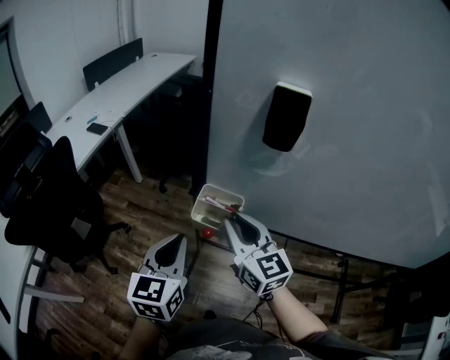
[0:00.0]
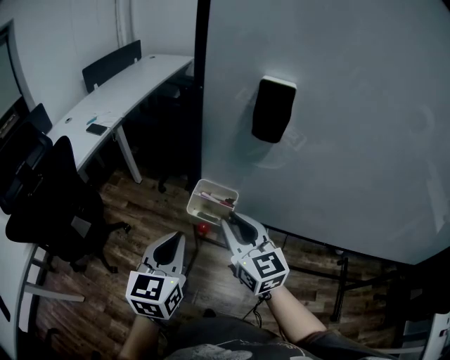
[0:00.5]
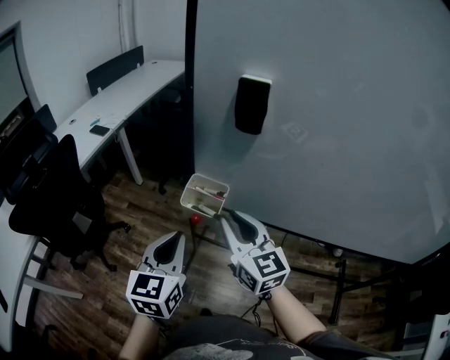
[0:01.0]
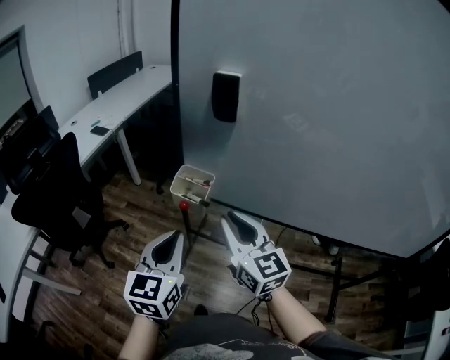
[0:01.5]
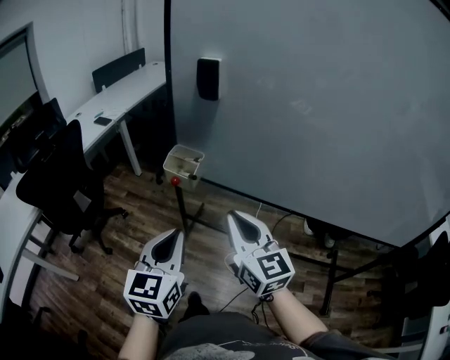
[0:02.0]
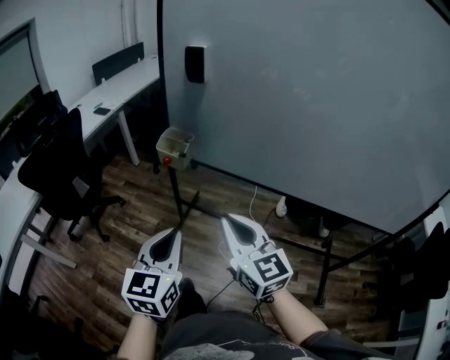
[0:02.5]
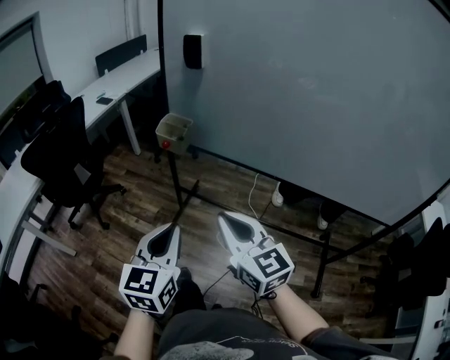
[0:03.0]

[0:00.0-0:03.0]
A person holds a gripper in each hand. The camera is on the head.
0:00.0 to 0:01.5: The grippers both shift backward and to the right by about 15 cm.
0:01.5 to 0:03.0: The grippers both shift backward by approximately 25 cm.

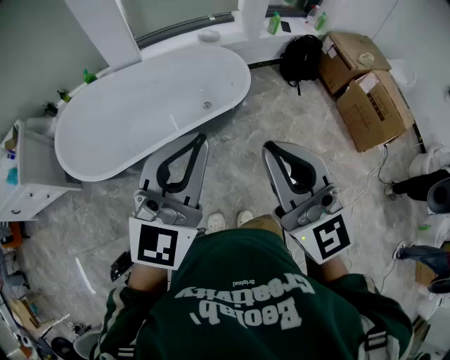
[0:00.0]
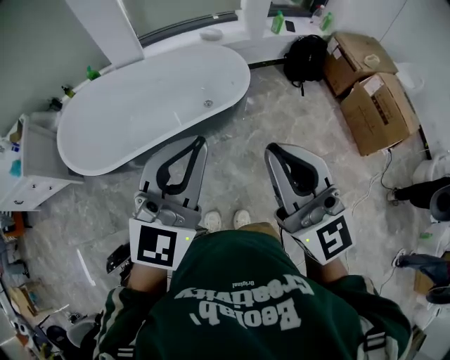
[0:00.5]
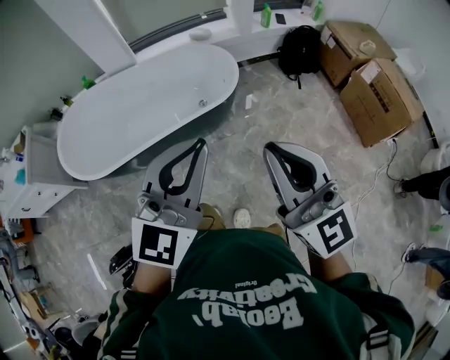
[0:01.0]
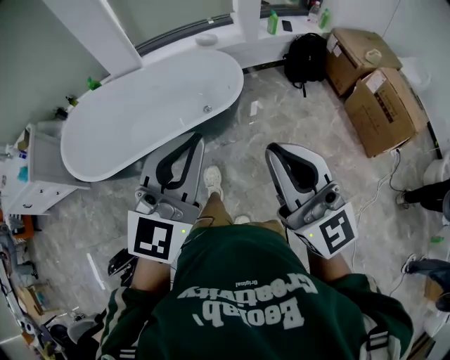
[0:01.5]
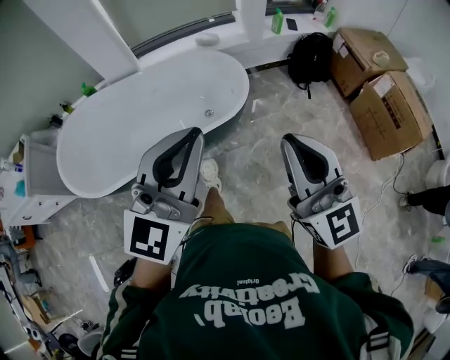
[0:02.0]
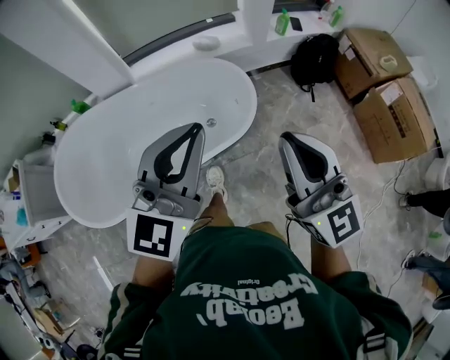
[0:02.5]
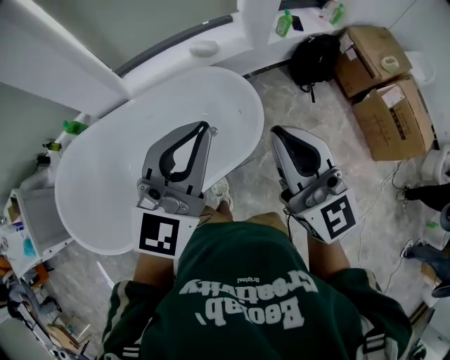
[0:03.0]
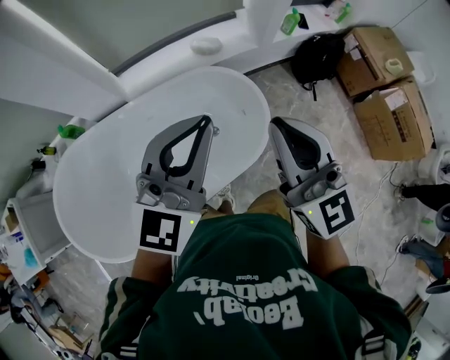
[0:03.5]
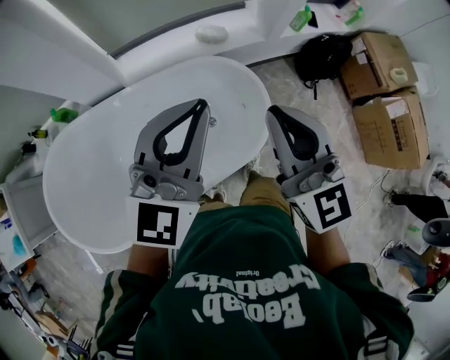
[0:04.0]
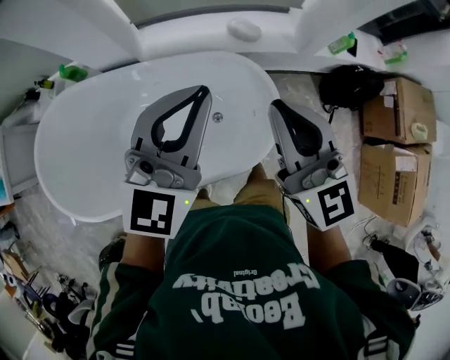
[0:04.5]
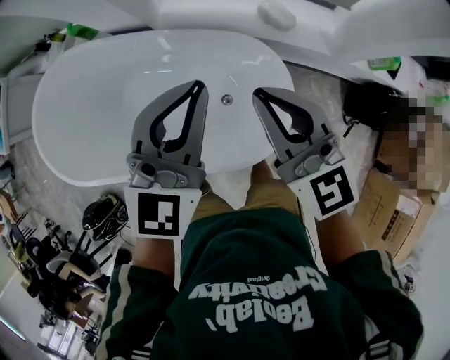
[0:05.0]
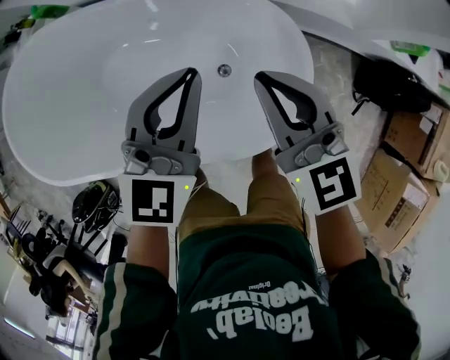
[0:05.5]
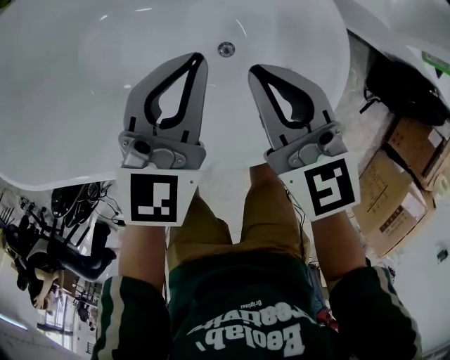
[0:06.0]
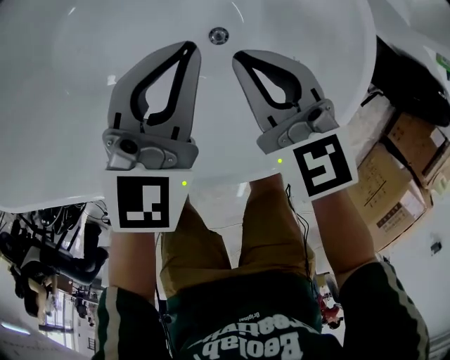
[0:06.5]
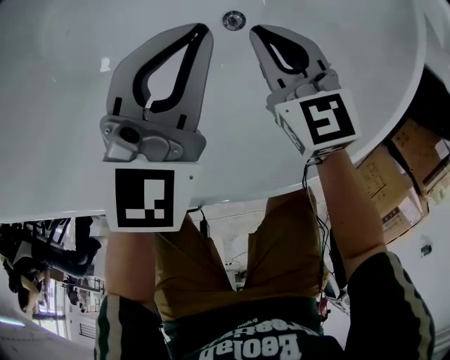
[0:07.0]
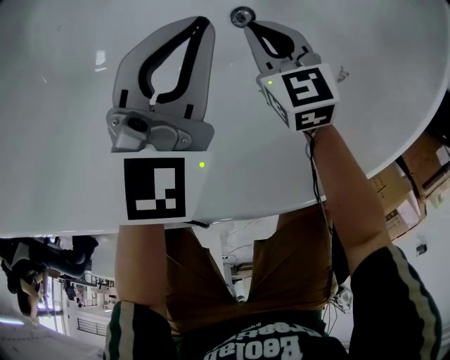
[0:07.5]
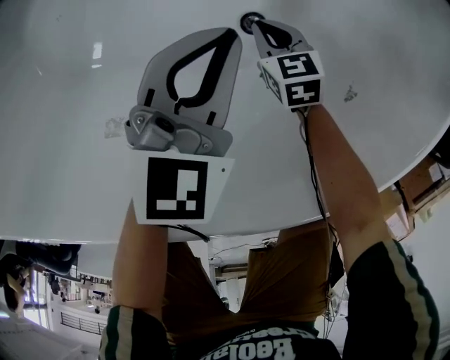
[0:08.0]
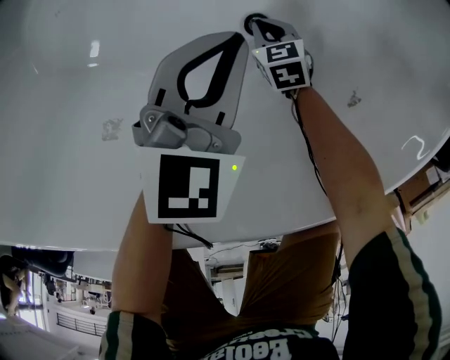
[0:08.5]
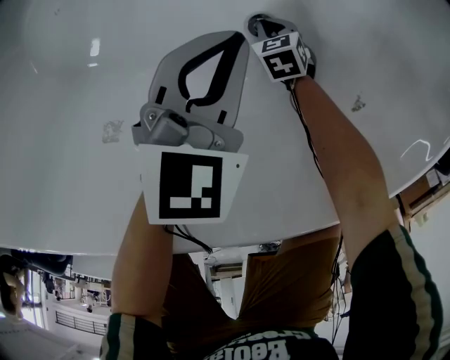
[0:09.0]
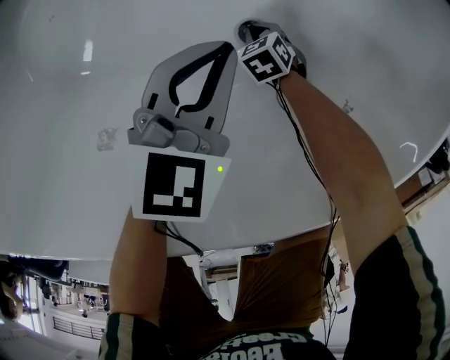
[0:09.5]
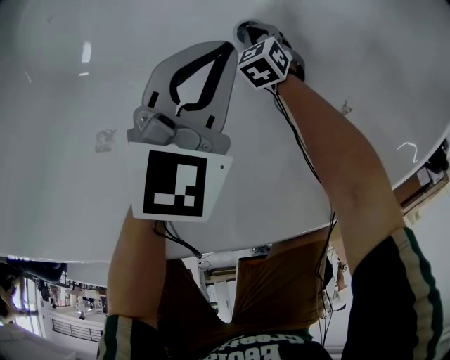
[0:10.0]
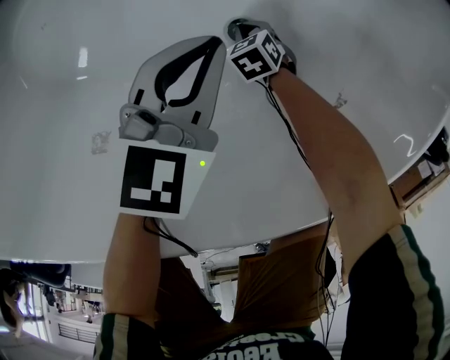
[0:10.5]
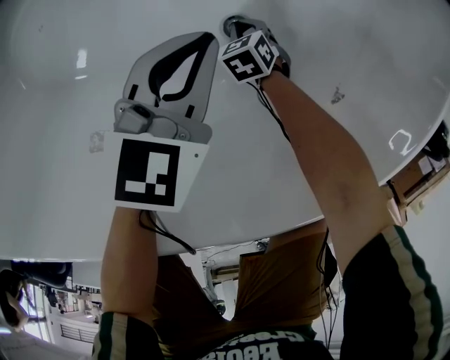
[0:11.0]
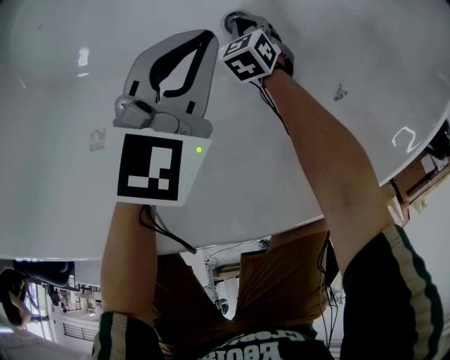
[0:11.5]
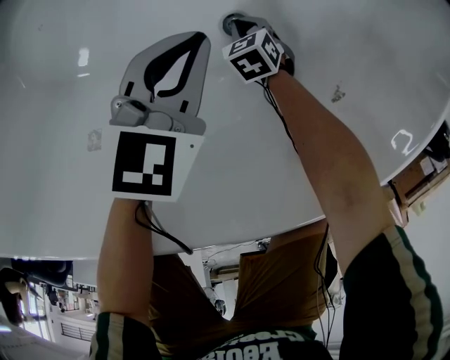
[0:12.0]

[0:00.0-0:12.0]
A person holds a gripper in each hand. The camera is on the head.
0:00.0 to 0:02.0: The left gripper travels forward and to the right by roughly 15 cm. The right gripper heads to the right, forward and downward, covering roughly 20 cm.
0:02.0 to 0:04.0: The two grippers travel together, forward and to the left, roughly 40 cm.
0:04.0 to 0:06.0: Both grippers move downward, some 40 cm. The left gripper changes its angle by some 50 degrees. Meanwhile the right gripper changes its angle by some 40 degrees.
0:06.0 to 0:08.0: The left gripper shifts roughly 25 cm downward. Meanwhile the right gripper moves downward, about 50 cm, and tilts its fingers roughly 30 degrees downward.
0:08.0 to 0:10.0: The right gripper is displaced downward by roughly 10 cm, and changes its angle by approximately 30 degrees.
0:10.0 to 0:12.0: There are only small adjustments of the grippers.

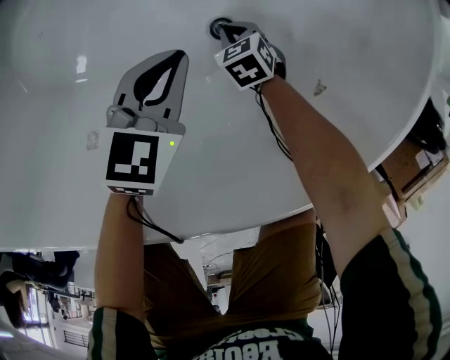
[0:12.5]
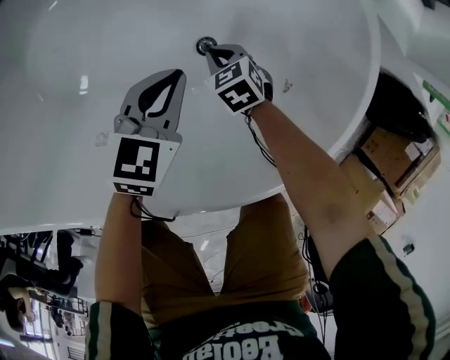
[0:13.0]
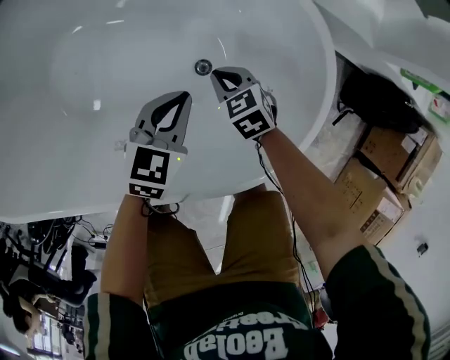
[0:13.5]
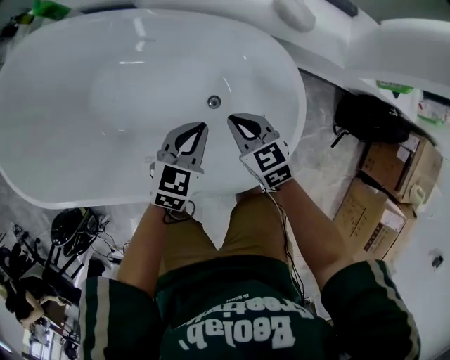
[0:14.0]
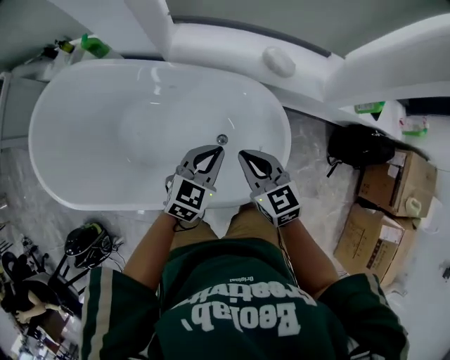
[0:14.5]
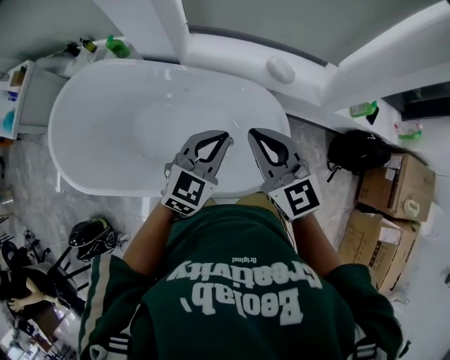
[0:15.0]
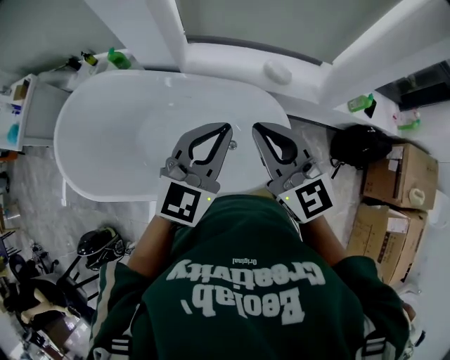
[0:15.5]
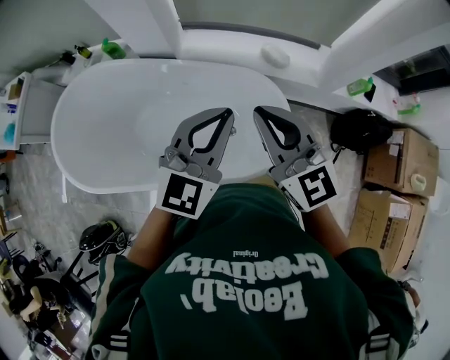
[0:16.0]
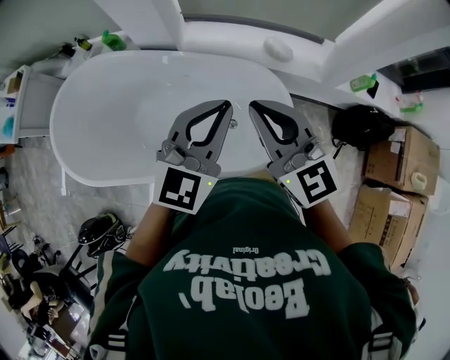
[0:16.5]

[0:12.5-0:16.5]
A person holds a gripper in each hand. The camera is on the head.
0:12.5 to 0:14.5: Both grippers travel together upward, roughly 50 cm. The right gripper tips its fingers upward by some 40 degrees, while the left gripper changes its angle by roughly 30 degrees.
0:14.5 to 0:16.5: The two grippers go some 25 cm upward. The right gripper rotates some 30 degrees. Meanwhile the left gripper swivels approximately 30 degrees.

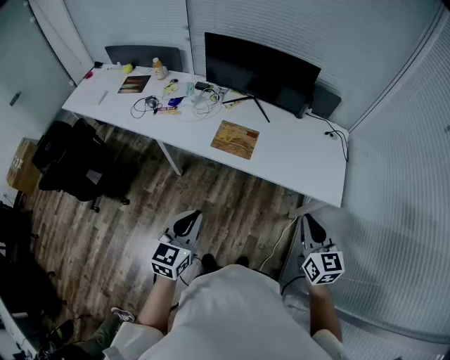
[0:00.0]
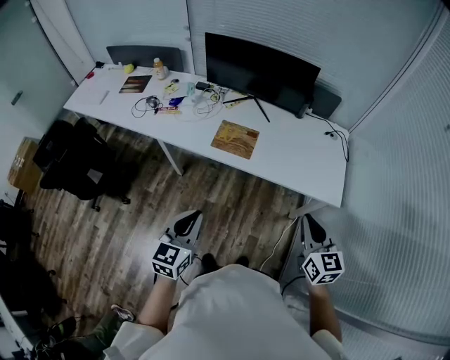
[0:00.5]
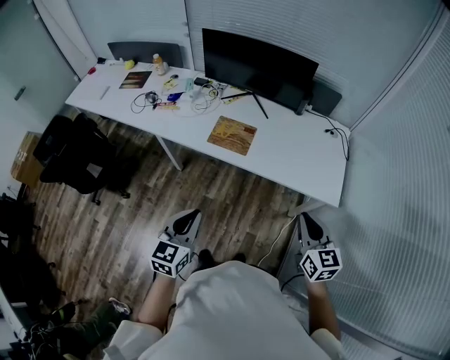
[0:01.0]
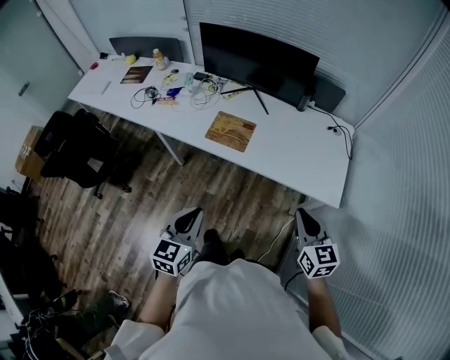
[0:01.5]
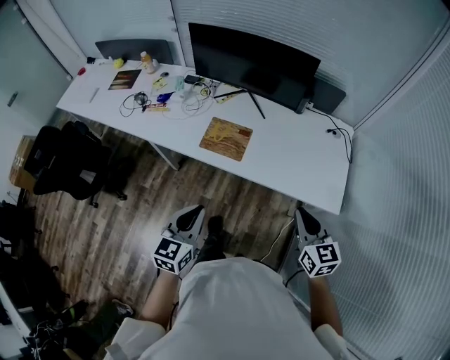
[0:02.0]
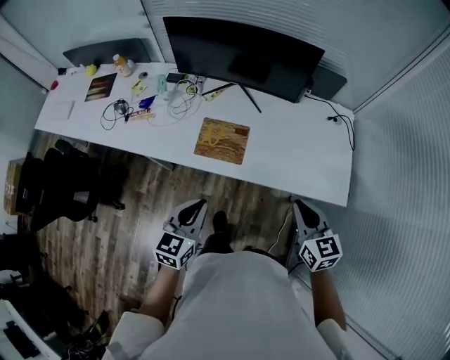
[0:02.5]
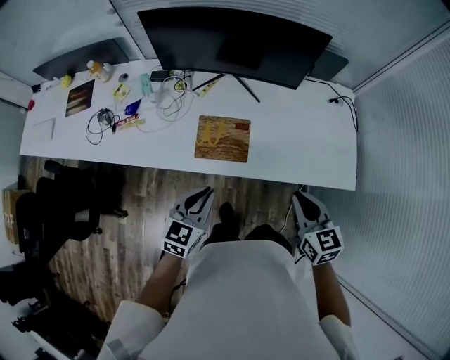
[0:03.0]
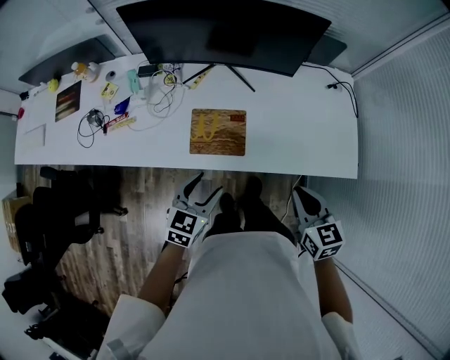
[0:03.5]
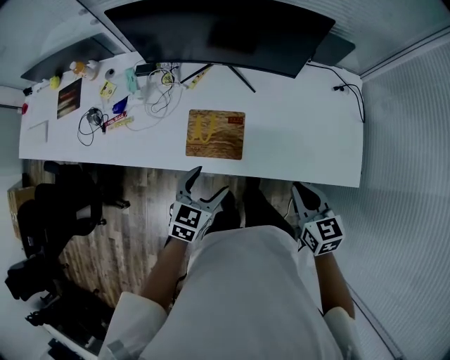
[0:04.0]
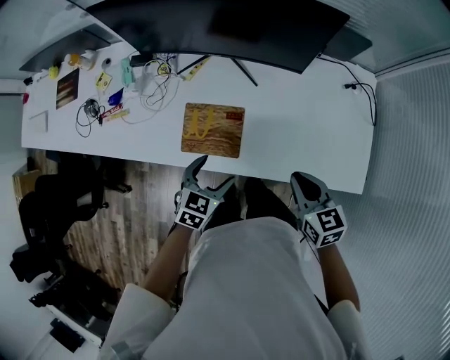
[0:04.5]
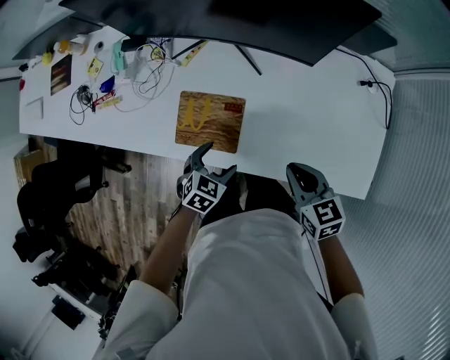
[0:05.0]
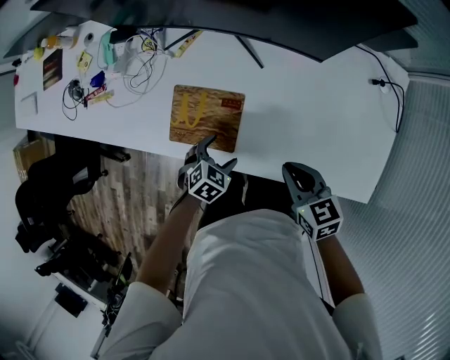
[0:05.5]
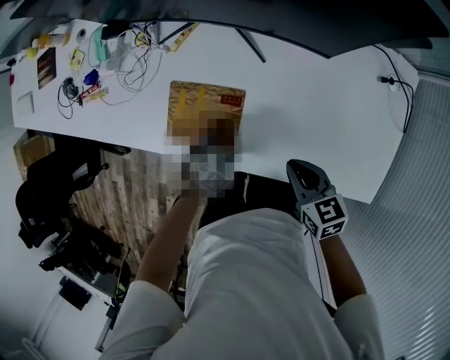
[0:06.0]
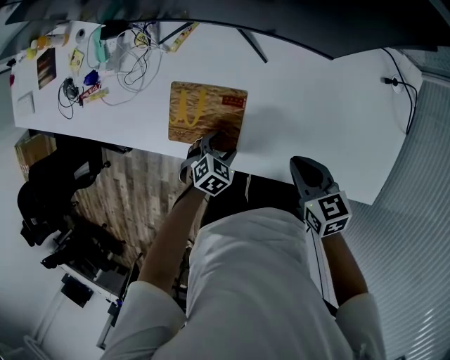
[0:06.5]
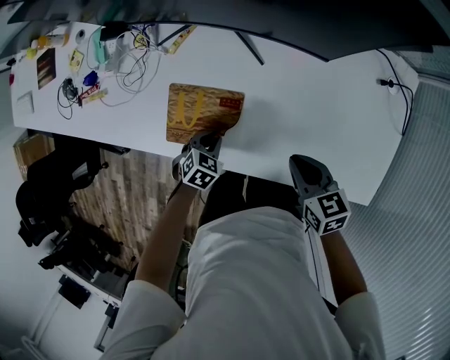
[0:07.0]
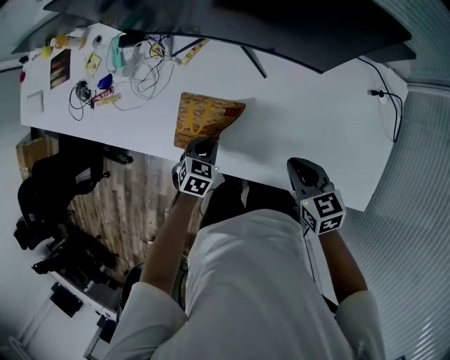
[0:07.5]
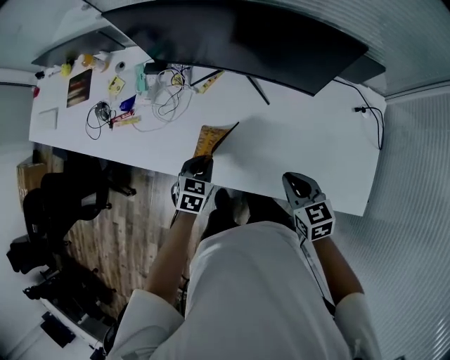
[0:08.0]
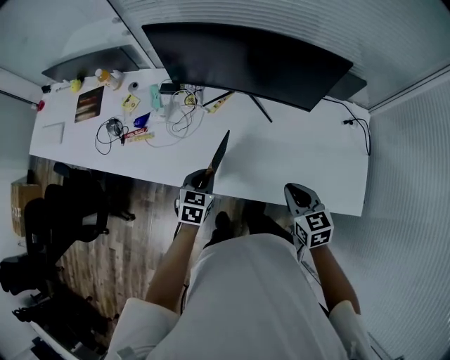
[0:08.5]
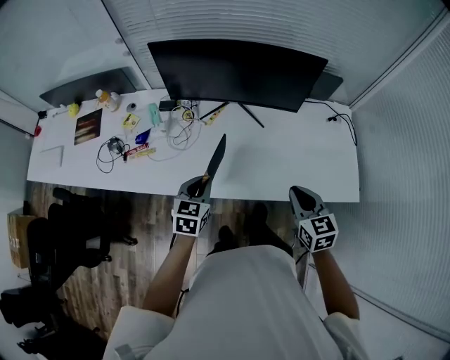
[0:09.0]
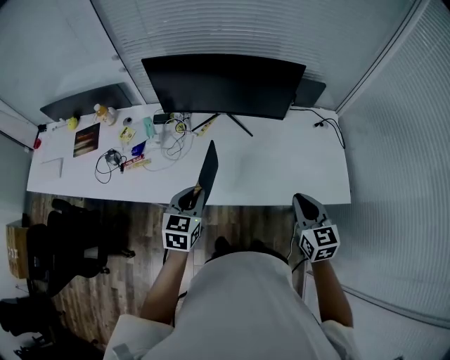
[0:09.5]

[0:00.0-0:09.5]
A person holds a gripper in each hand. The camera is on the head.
0:00.0 to 0:02.0: The left gripper is displaced forward and to the right by approximately 10 cm; the right gripper is displaced forward by about 10 cm.
0:02.0 to 0:04.0: The left gripper is displaced forward and downward by approximately 25 cm, swivels roughly 30 degrees, and opens up, while the right gripper moves forward, downward and to the left, some 20 cm.
0:04.0 to 0:05.5: The left gripper shifts roughly 20 cm downward, and changes its angle by some 30 degrees, while the right gripper moves downward and forward, roughly 15 cm, and swivels some 20 degrees.
0:05.5 to 0:07.5: The left gripper moves roughly 5 cm, and closes.
0:07.5 to 0:09.5: The left gripper shifts roughly 30 cm upward, and points its fingers some 40 degrees further upward. Meanwhile the right gripper heads upward and backward, covering roughly 25 cm, and turns by some 40 degrees.
